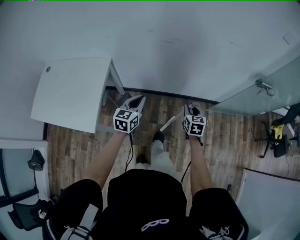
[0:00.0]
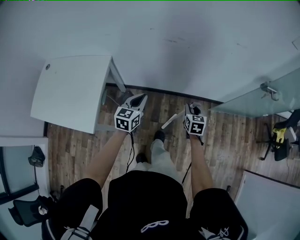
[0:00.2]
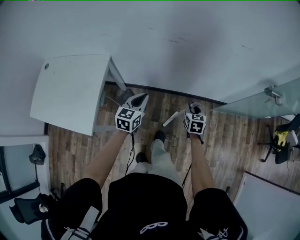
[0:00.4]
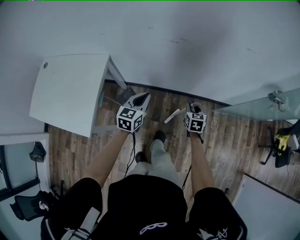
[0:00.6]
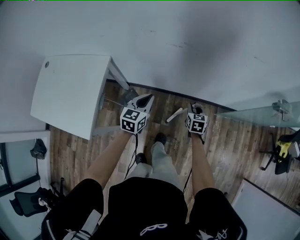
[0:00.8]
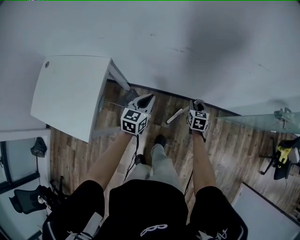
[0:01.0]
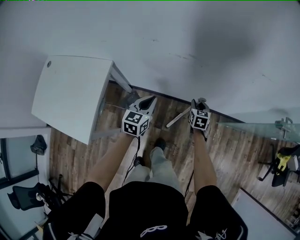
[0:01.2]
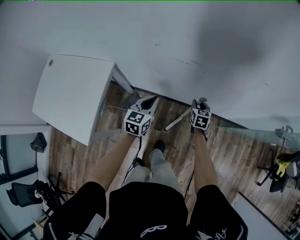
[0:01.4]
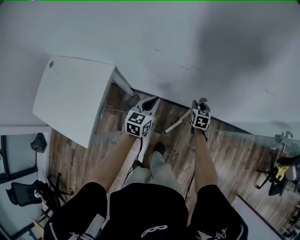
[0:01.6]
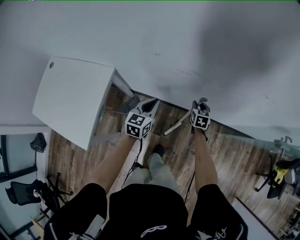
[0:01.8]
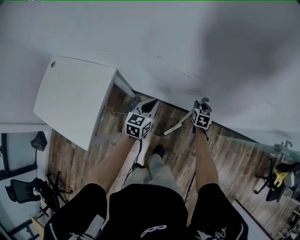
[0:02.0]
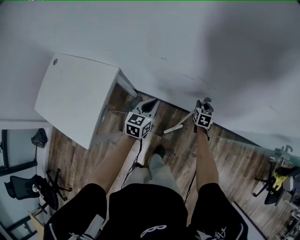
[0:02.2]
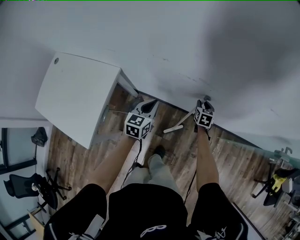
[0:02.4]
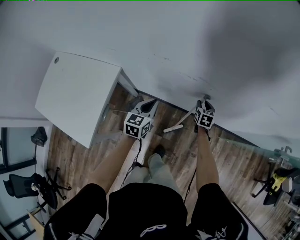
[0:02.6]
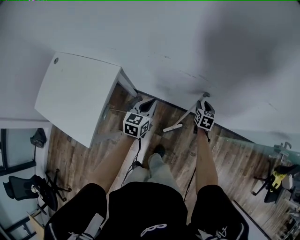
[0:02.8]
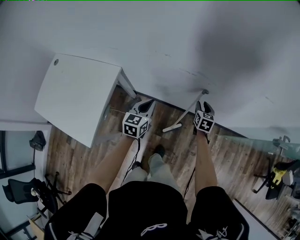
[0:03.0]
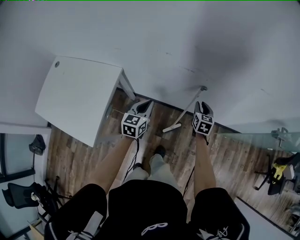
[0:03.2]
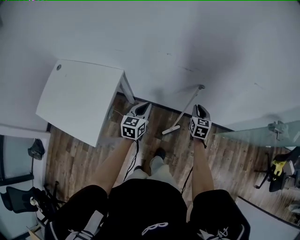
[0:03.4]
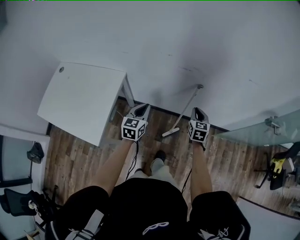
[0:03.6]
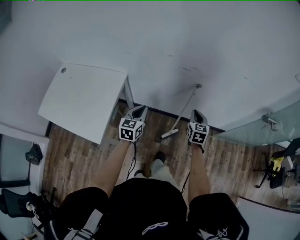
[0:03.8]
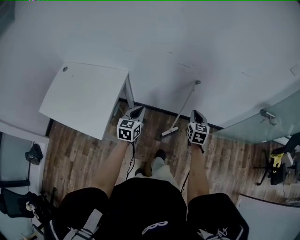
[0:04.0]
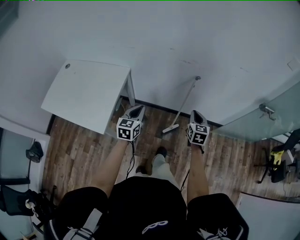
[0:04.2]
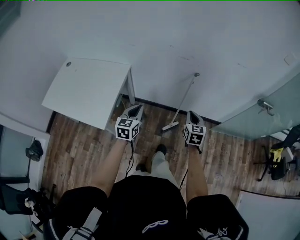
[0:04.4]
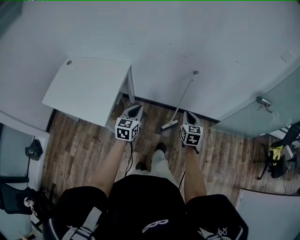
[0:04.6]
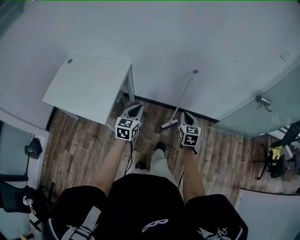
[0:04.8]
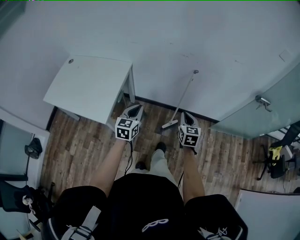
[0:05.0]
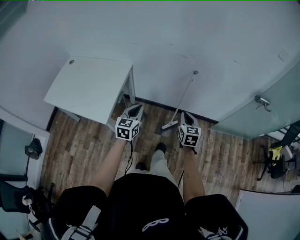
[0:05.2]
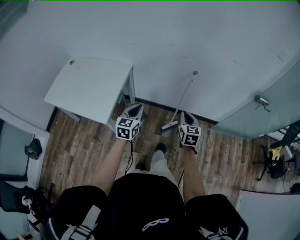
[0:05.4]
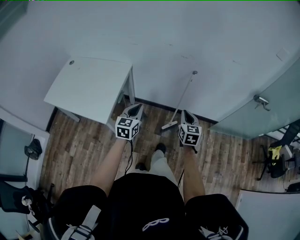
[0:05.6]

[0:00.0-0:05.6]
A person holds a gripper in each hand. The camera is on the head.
0:00.0 to 0:01.4: The right gripper goes about 30 cm forward and downward; the left gripper goes approximately 20 cm forward.
0:01.4 to 0:02.8: The left gripper moves about 5 cm. The right gripper travels forward by some 5 cm.
0:02.8 to 0:04.2: The right gripper moves backward and upward, roughly 40 cm, and closes. The left gripper travels backward by roughly 30 cm.
0:04.2 to 0:05.6: Both grippers move backward, roughly 10 cm.

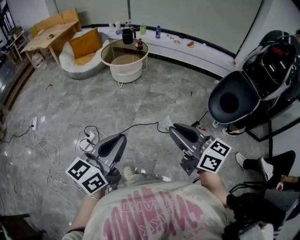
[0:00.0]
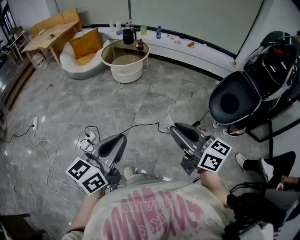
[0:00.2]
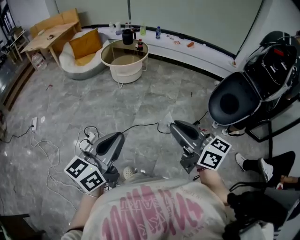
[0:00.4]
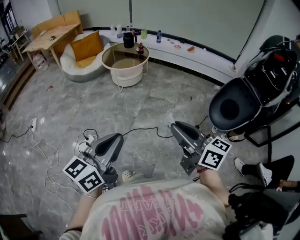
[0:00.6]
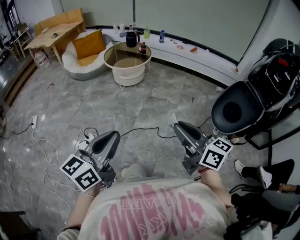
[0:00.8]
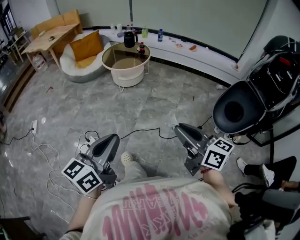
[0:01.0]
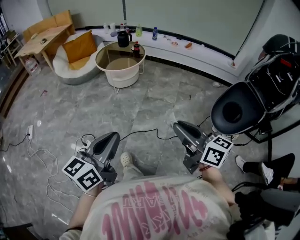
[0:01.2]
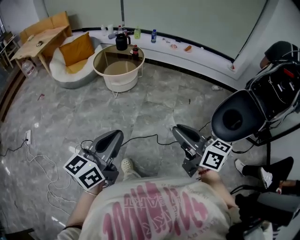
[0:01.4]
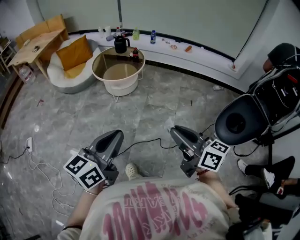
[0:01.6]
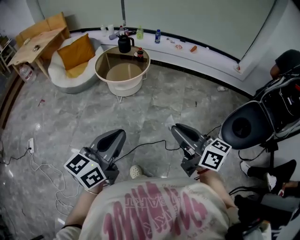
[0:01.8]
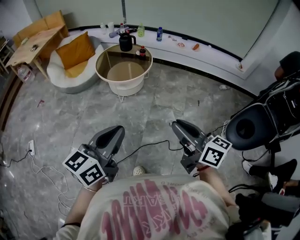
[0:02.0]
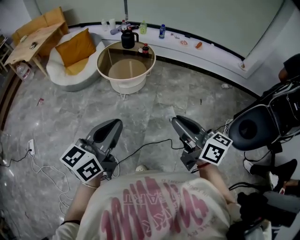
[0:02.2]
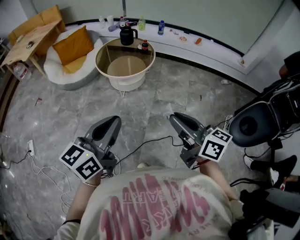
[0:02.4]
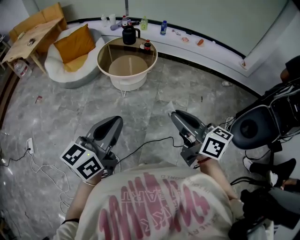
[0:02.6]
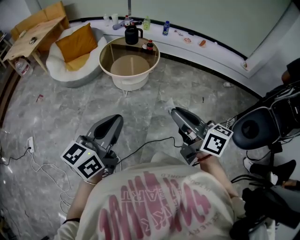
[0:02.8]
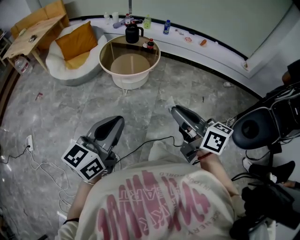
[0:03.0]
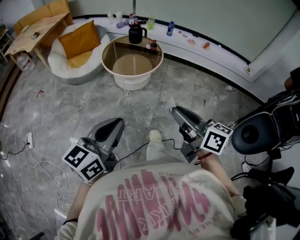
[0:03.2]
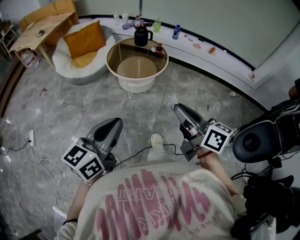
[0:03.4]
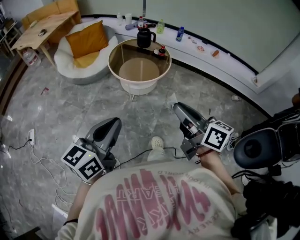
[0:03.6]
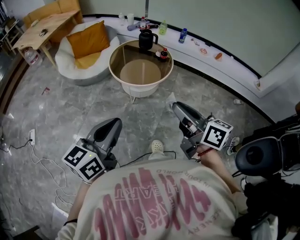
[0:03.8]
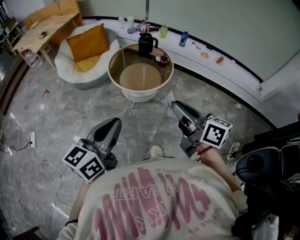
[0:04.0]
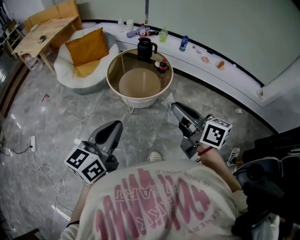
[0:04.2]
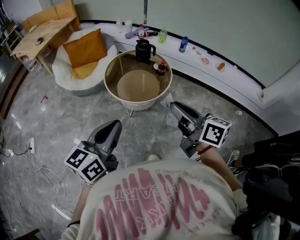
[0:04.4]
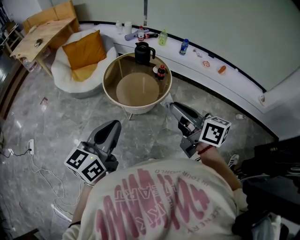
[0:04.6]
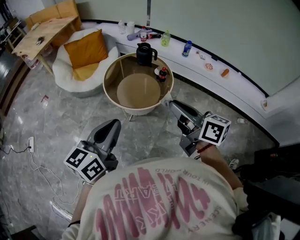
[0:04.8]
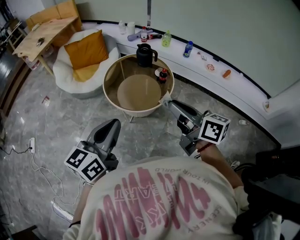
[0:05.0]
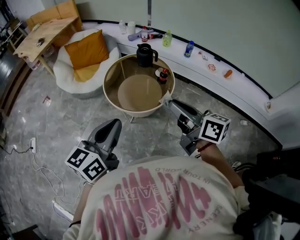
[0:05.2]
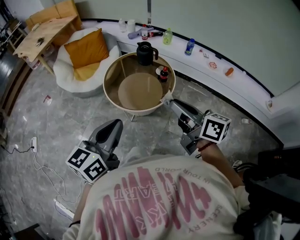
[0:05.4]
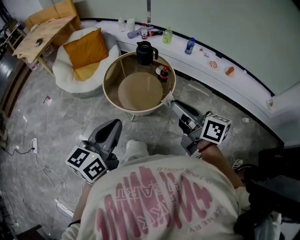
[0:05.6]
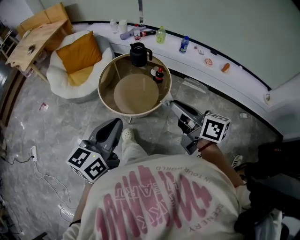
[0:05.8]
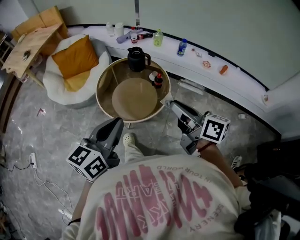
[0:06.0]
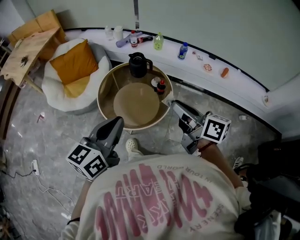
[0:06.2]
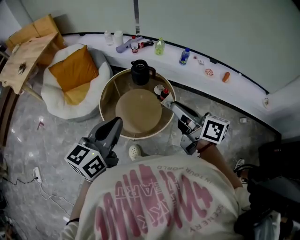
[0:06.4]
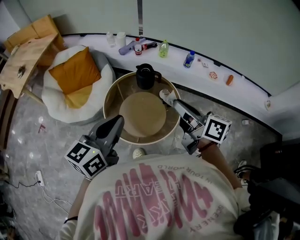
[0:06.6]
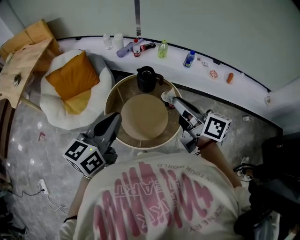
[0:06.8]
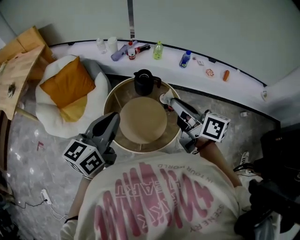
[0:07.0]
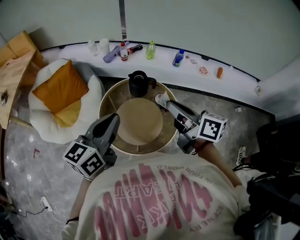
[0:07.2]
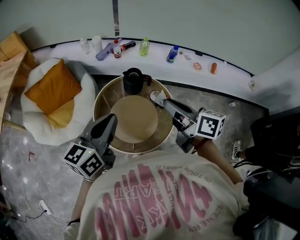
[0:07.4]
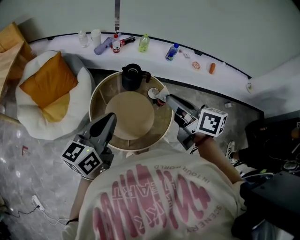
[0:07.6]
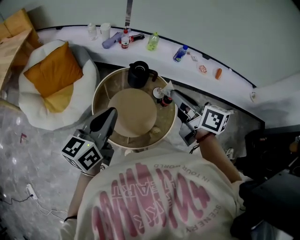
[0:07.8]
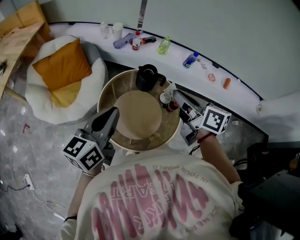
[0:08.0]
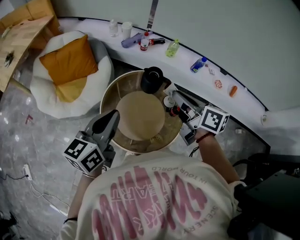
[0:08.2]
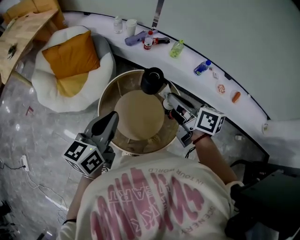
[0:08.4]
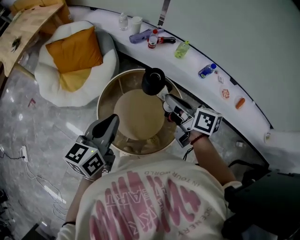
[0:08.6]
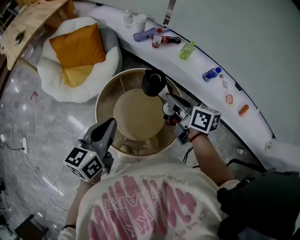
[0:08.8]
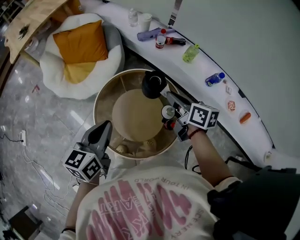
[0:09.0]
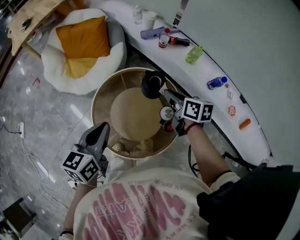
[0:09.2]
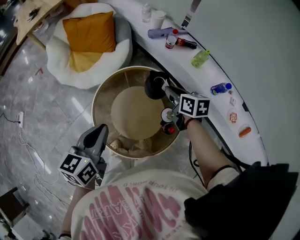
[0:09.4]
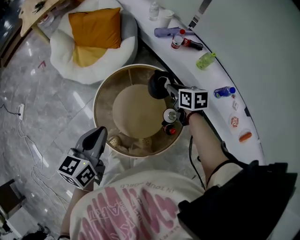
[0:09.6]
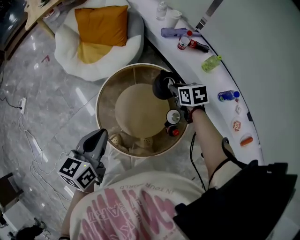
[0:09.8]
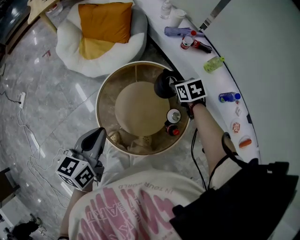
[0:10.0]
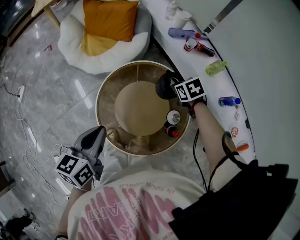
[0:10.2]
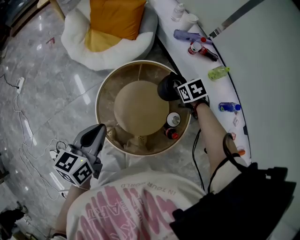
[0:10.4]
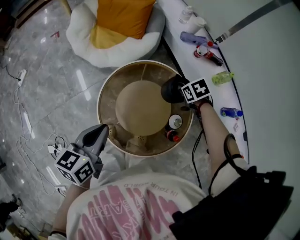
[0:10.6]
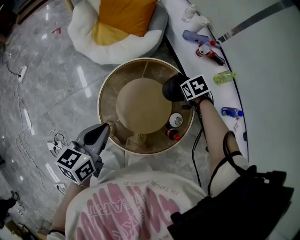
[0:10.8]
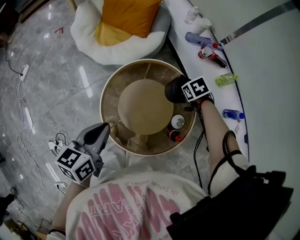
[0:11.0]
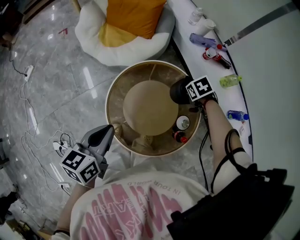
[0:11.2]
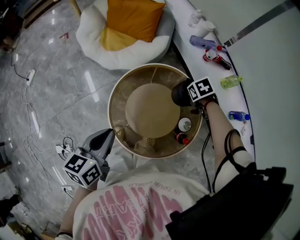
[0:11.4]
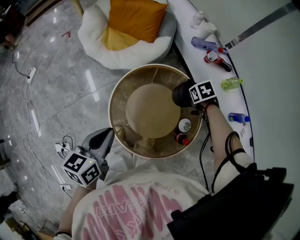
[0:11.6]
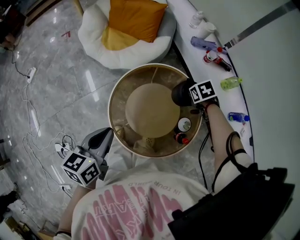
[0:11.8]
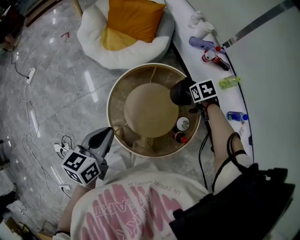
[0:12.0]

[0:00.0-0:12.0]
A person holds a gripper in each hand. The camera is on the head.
0:00.0 to 0:01.6: Both grippers travel together forward, about 20 cm.
0:01.6 to 0:03.0: Both grippers move forward and to the left, some 20 cm.
0:03.0 to 0:04.4: Both grippers travel together forward, roughly 25 cm.
0:04.4 to 0:06.0: Both grippers move forward, approximately 20 cm.
0:06.0 to 0:07.6: Both grippers travel together forward and to the left, about 30 cm.
0:07.6 to 0:09.0: The right gripper changes place by approximately 25 cm, and swivels some 30 degrees, while the left gripper shifts approximately 10 cm downward, and changes its angle by some 40 degrees.
0:09.0 to 0:10.4: The left gripper ends up about 5 cm from where it was. The right gripper shifts approximately 20 cm downward and forward, and tips its fingers downward by some 50 degrees.
0:10.4 to 0:12.0: The right gripper opens up.

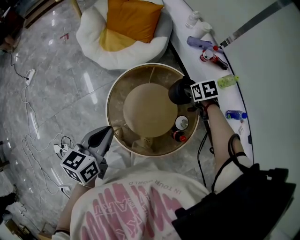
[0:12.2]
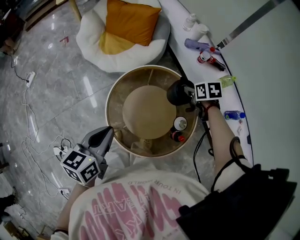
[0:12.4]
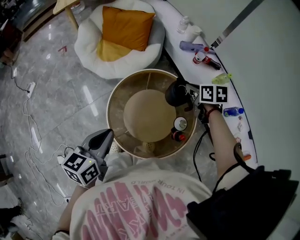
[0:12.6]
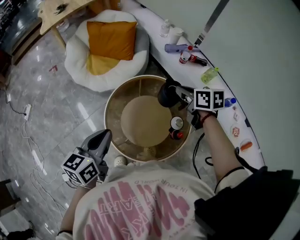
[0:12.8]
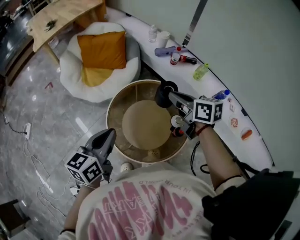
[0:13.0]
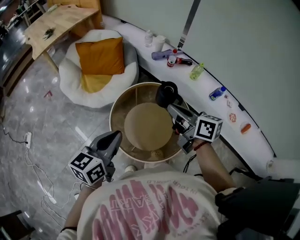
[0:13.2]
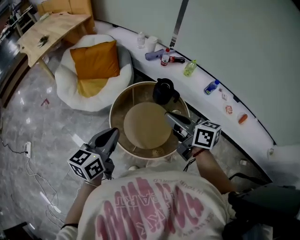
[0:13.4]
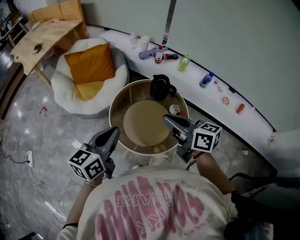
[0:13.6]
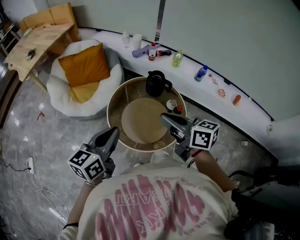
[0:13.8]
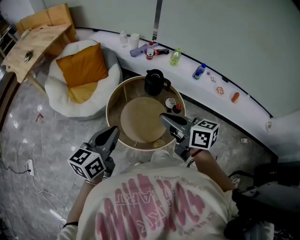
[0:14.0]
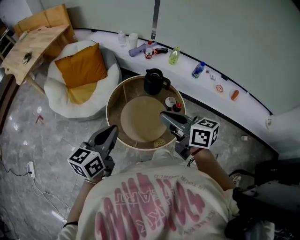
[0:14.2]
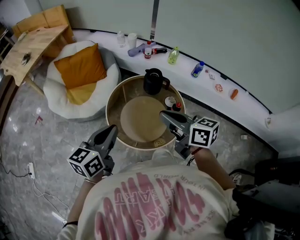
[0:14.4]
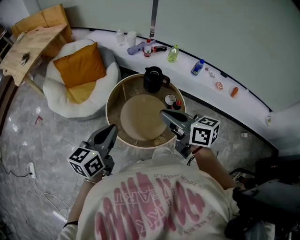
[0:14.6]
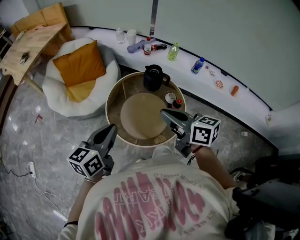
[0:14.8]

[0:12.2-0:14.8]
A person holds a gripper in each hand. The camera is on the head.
0:12.2 to 0:13.4: The right gripper shifts approximately 40 cm upward, backward and to the left, angles its fingers upward, by some 60 degrees, and closes up. Meanwhile the left gripper heads upward, covering about 10 cm, and turns by about 30 degrees.
0:13.4 to 0:14.8: The right gripper goes some 5 cm backward.

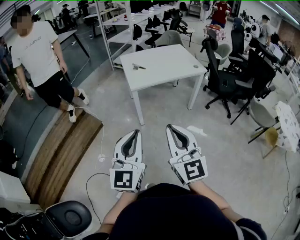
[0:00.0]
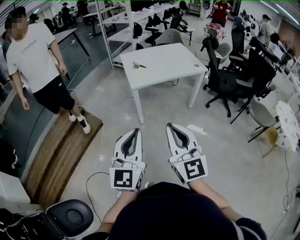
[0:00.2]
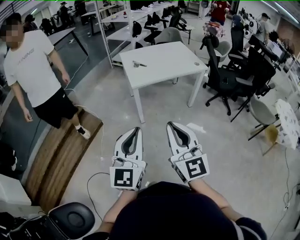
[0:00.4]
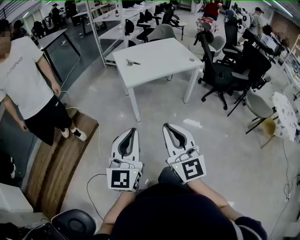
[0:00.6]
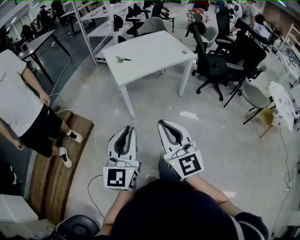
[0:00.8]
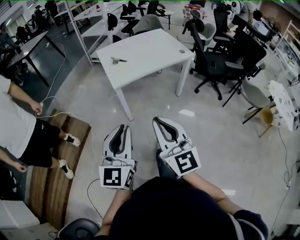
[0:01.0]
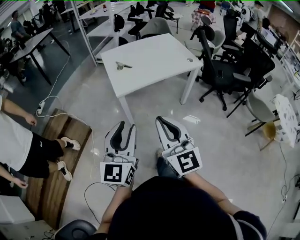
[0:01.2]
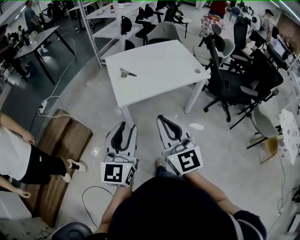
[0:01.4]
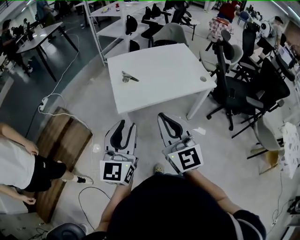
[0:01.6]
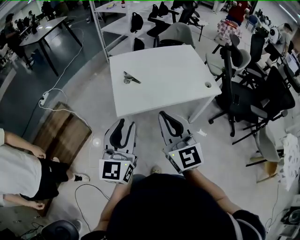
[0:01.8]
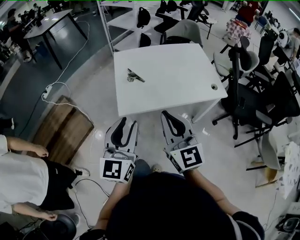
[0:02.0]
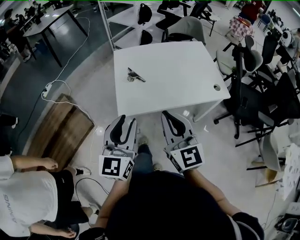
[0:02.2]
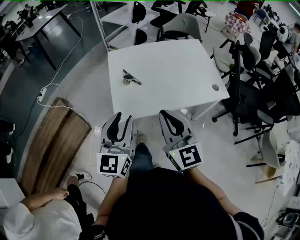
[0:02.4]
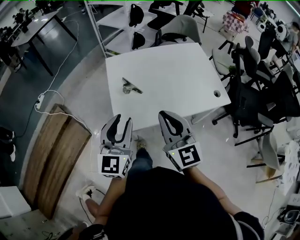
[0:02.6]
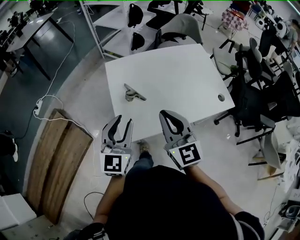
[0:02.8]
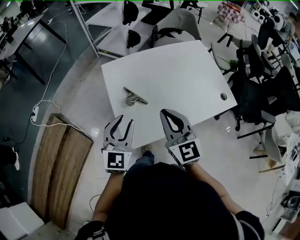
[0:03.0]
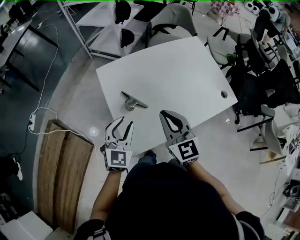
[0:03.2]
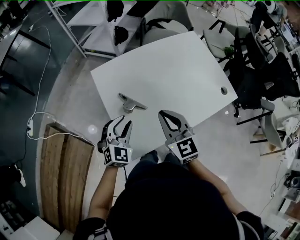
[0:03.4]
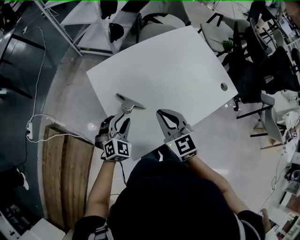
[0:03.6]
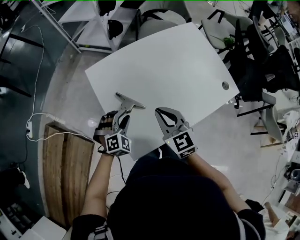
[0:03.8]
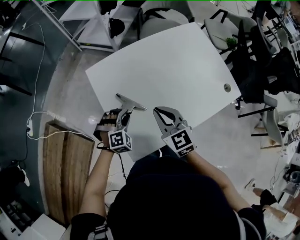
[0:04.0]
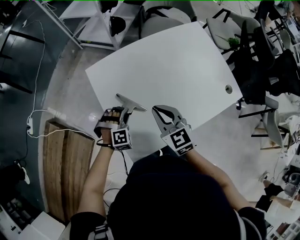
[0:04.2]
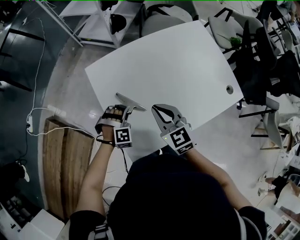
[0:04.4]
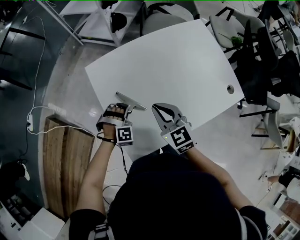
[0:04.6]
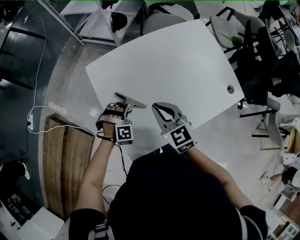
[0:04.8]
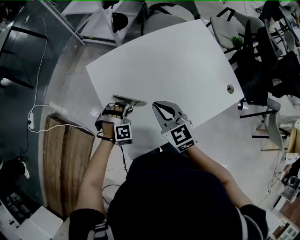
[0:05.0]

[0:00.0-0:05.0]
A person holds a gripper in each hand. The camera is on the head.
0:00.0 to 0:01.6: The grippers both shift forward by about 40 cm. The left gripper opens its fingers.
0:01.6 to 0:03.4: The right gripper shifts roughly 40 cm forward, and changes its angle by about 20 degrees. The left gripper travels forward and downward by some 50 cm, and points its fingers roughly 30 degrees further downward.
0:03.4 to 0:05.0: The right gripper travels forward and downward by about 10 cm. Meanwhile the left gripper travels downward and forward by roughly 15 cm, and twists roughly 50 degrees clockwise, seen from behind.
